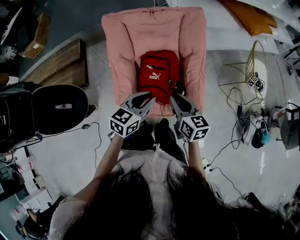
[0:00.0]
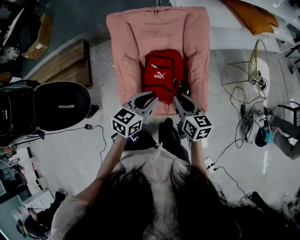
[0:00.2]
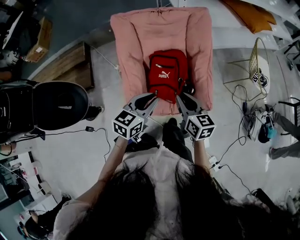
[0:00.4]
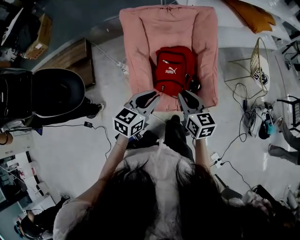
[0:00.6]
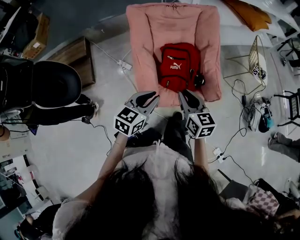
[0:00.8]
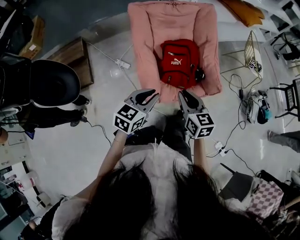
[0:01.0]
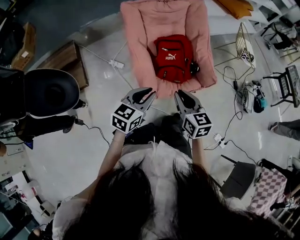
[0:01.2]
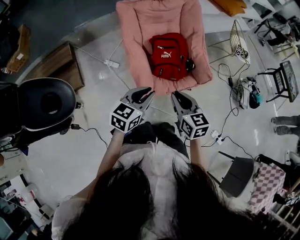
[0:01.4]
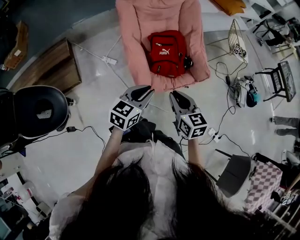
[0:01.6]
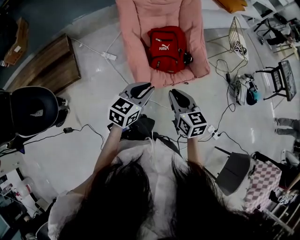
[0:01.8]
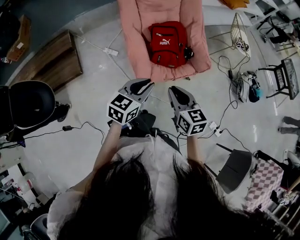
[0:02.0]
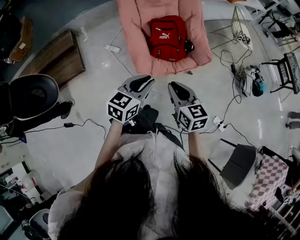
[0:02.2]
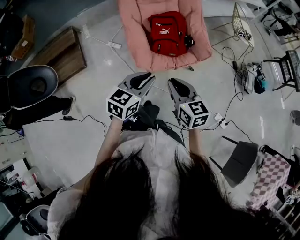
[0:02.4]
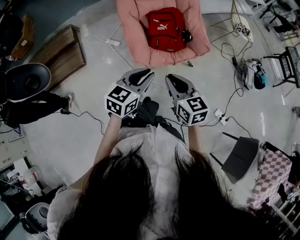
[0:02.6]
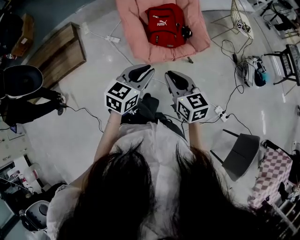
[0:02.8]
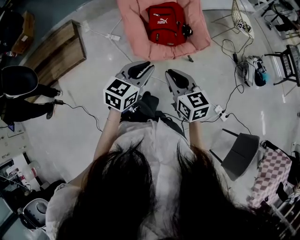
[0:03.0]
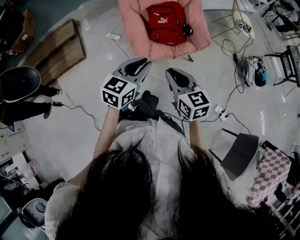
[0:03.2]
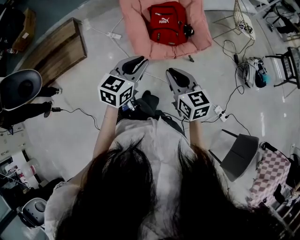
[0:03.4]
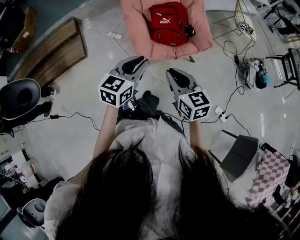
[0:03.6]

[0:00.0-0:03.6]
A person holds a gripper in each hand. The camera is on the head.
0:00.0 to 0:01.8: The grippers both shift backward and to the left by roughly 30 cm.
0:01.8 to 0:03.6: Both grippers move backward, roughly 10 cm.

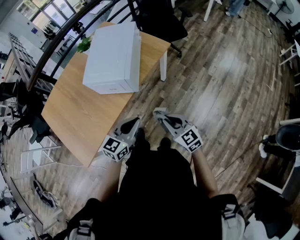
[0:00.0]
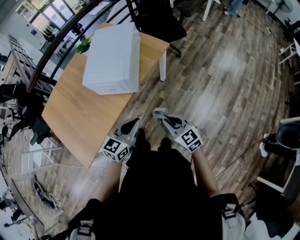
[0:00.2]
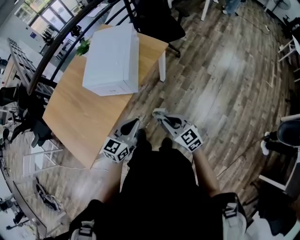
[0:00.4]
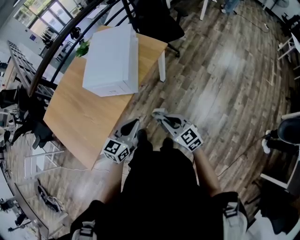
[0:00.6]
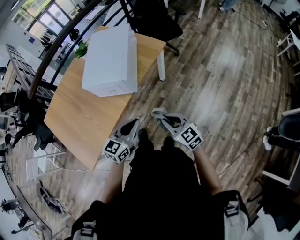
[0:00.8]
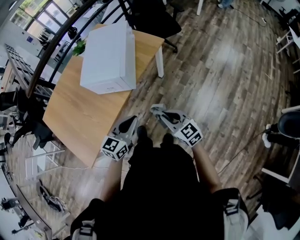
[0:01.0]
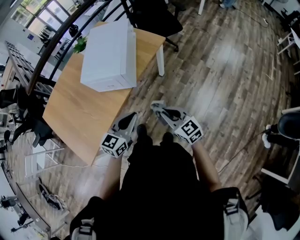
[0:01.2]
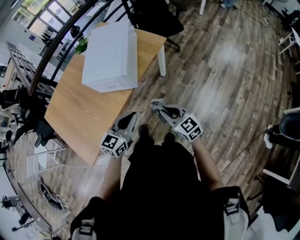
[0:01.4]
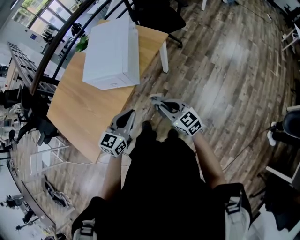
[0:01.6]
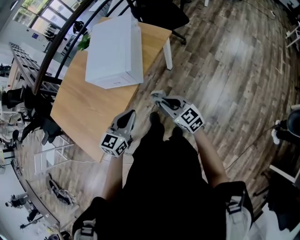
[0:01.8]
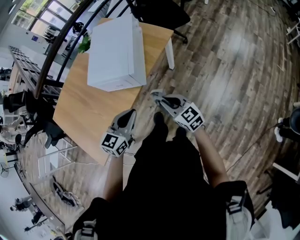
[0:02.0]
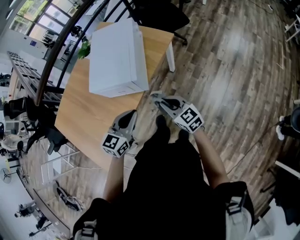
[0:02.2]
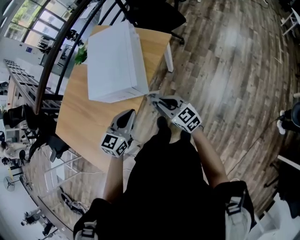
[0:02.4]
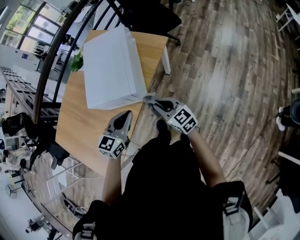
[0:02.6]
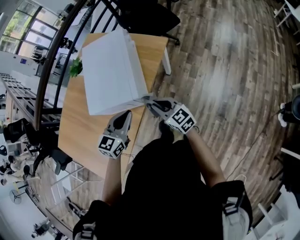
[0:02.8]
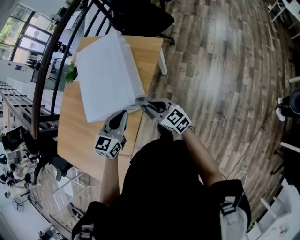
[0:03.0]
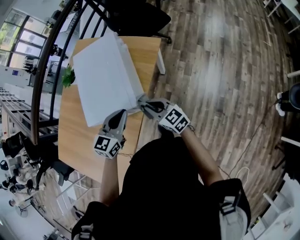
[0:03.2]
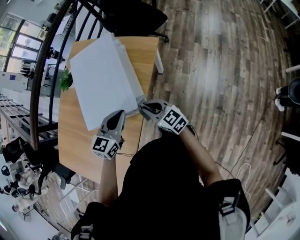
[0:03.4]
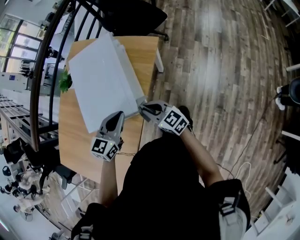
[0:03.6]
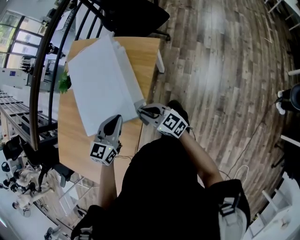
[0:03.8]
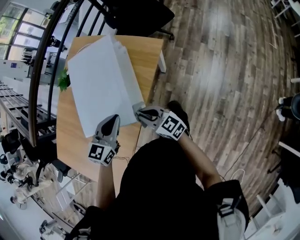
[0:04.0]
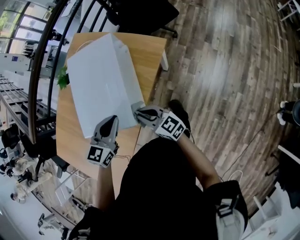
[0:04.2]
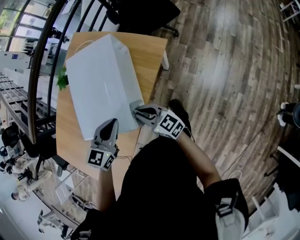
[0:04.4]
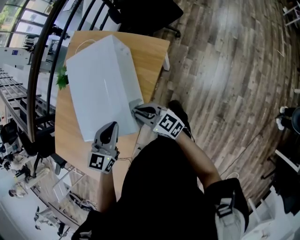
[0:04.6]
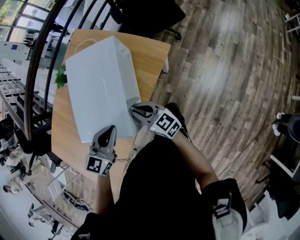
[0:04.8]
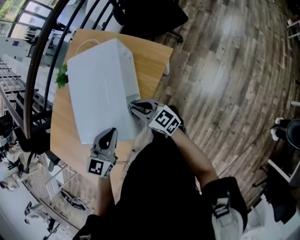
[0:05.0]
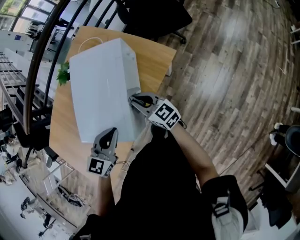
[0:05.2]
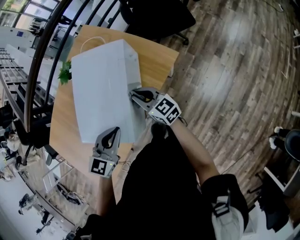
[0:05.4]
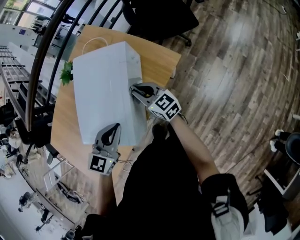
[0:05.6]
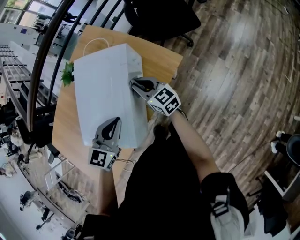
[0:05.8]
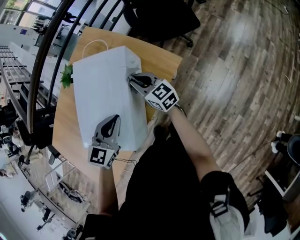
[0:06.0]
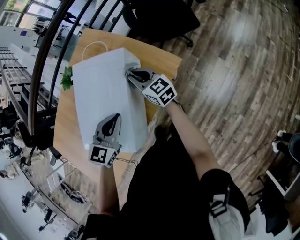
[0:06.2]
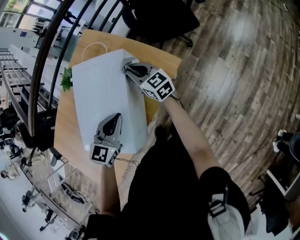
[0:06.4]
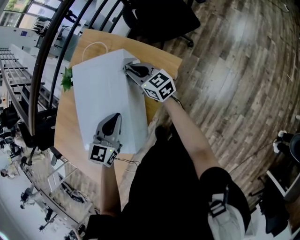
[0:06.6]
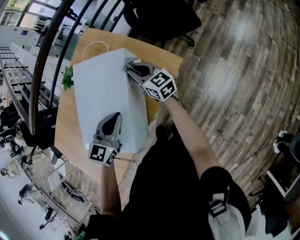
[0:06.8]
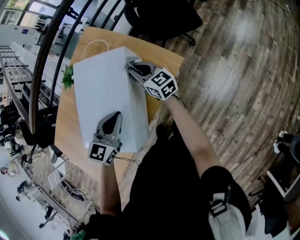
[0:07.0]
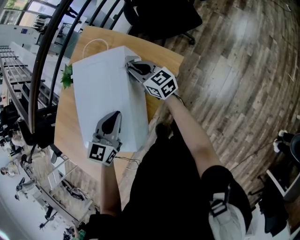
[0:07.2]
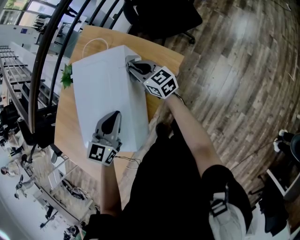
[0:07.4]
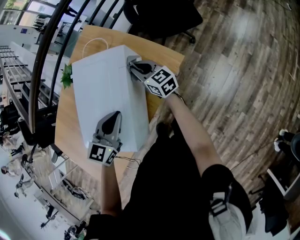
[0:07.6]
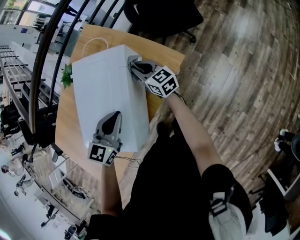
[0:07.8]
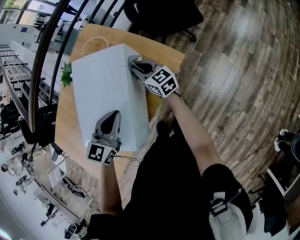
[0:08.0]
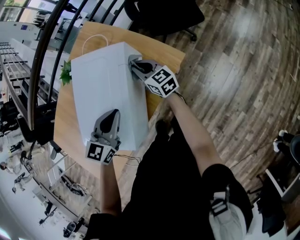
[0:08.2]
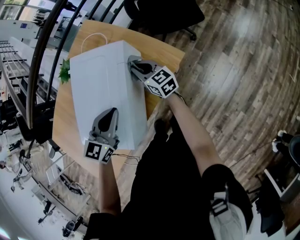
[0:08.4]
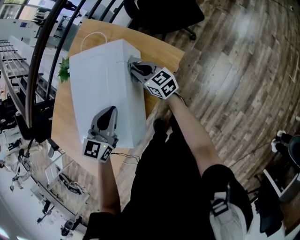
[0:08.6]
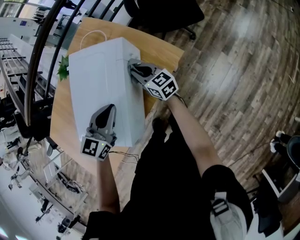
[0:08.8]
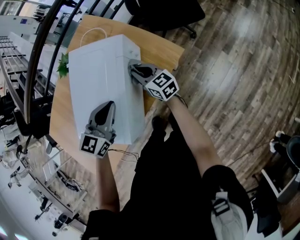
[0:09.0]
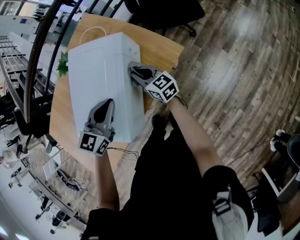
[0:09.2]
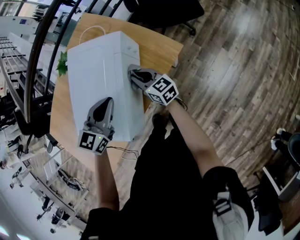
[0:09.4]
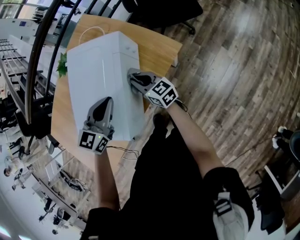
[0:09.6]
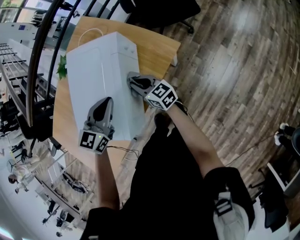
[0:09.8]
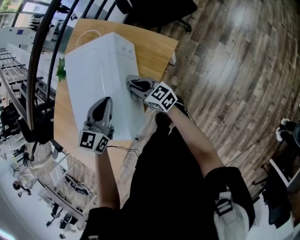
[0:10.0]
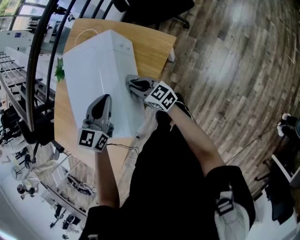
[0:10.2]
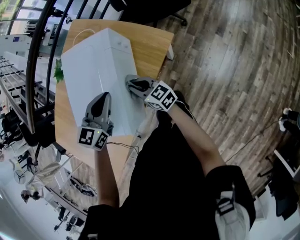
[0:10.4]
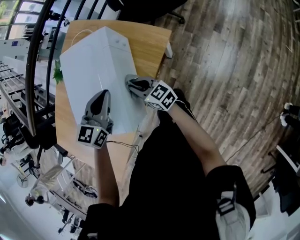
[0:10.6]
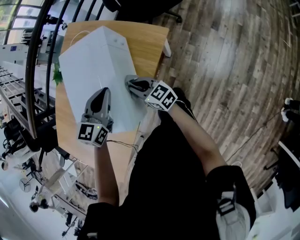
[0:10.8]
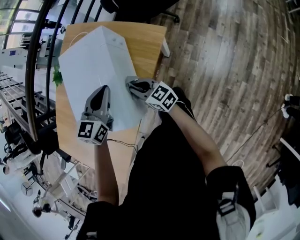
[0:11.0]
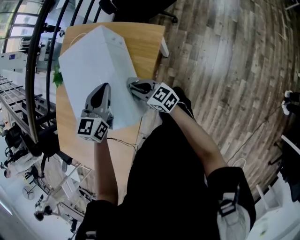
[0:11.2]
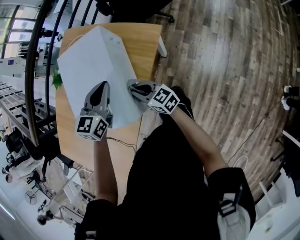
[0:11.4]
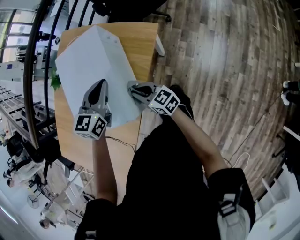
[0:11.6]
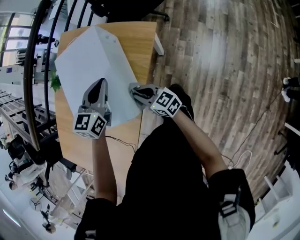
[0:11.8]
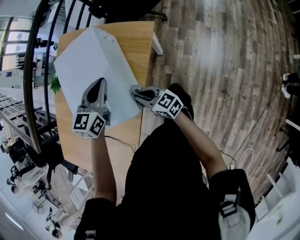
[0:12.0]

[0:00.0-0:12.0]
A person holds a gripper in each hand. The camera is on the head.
0:00.0 to 0:01.6: The grippers stay close to where they were, moving slightly.
0:01.6 to 0:03.0: The left gripper heads forward, covering roughly 20 cm. The right gripper heads forward and to the left, covering approximately 20 cm.
0:03.0 to 0:04.4: Both grippers move forward, about 10 cm.
0:04.4 to 0:06.0: The left gripper moves forward, about 10 cm, while the right gripper goes about 25 cm forward.
0:06.0 to 0:07.6: The right gripper moves forward, approximately 5 cm.
0:07.6 to 0:09.0: The right gripper is displaced backward by about 5 cm.
0:09.0 to 0:10.4: The right gripper goes about 10 cm backward.
0:10.4 to 0:12.0: The right gripper heads backward, covering roughly 10 cm.

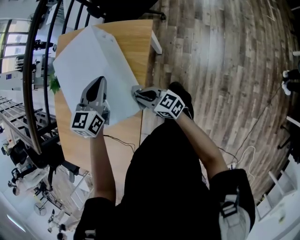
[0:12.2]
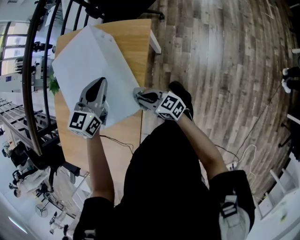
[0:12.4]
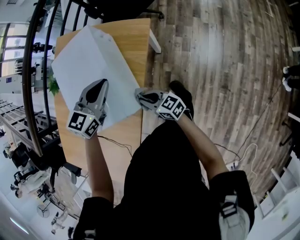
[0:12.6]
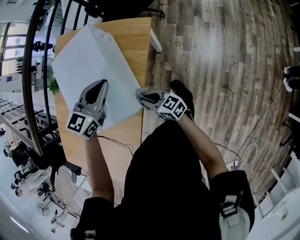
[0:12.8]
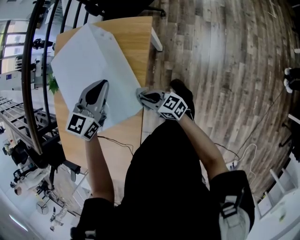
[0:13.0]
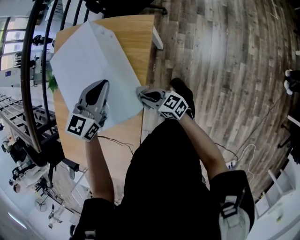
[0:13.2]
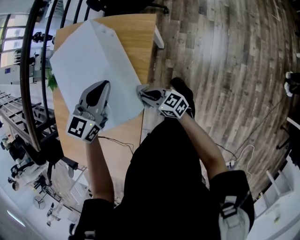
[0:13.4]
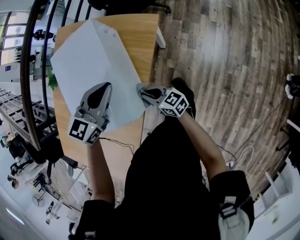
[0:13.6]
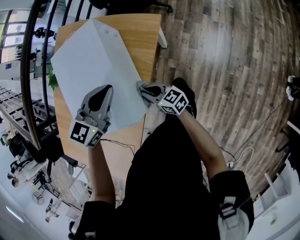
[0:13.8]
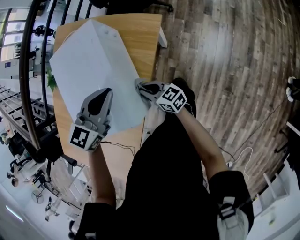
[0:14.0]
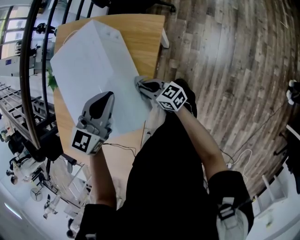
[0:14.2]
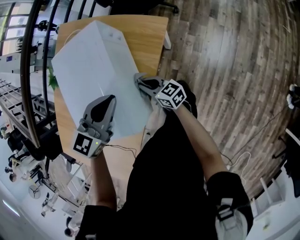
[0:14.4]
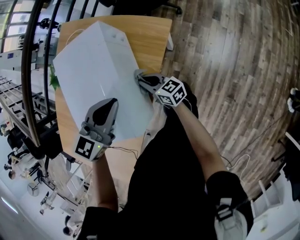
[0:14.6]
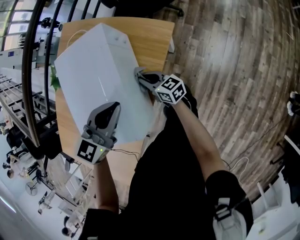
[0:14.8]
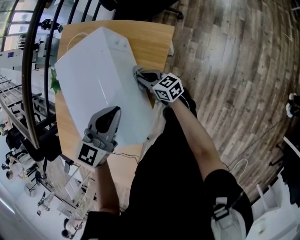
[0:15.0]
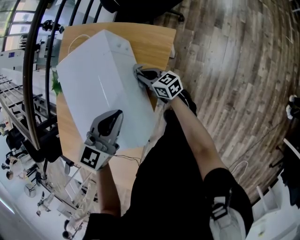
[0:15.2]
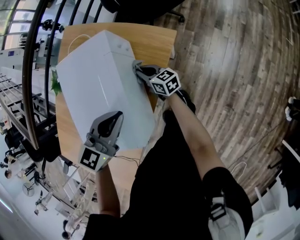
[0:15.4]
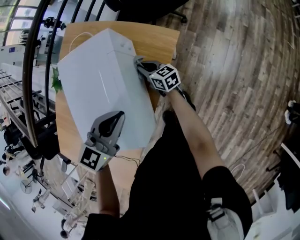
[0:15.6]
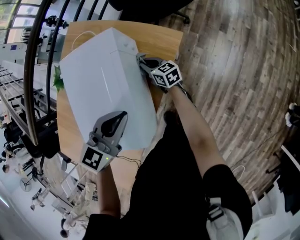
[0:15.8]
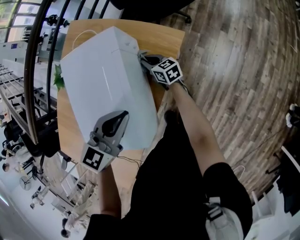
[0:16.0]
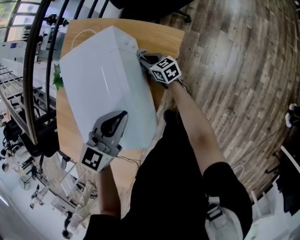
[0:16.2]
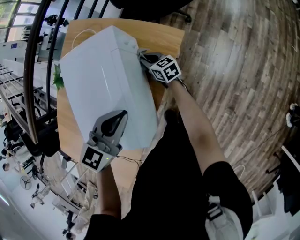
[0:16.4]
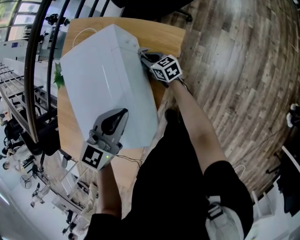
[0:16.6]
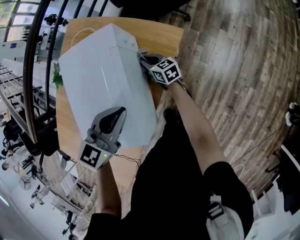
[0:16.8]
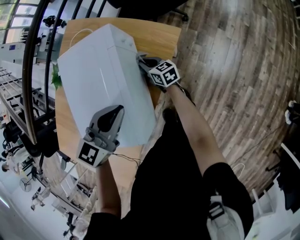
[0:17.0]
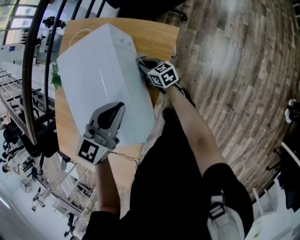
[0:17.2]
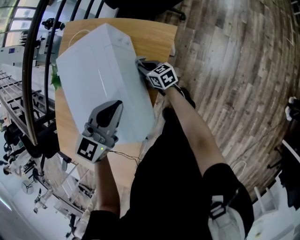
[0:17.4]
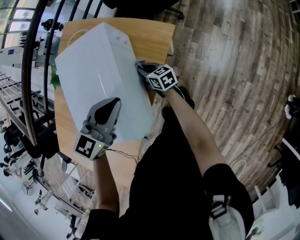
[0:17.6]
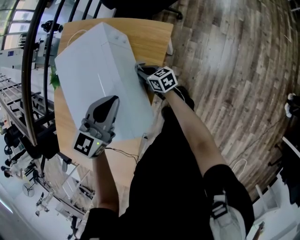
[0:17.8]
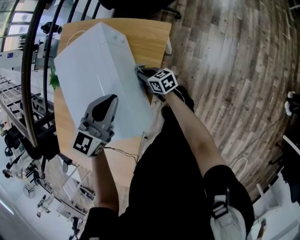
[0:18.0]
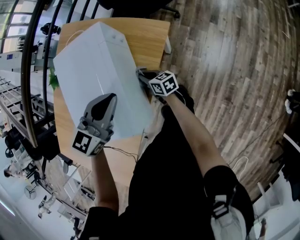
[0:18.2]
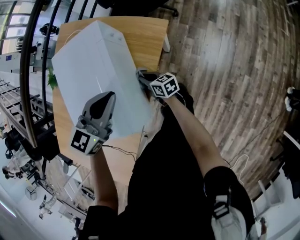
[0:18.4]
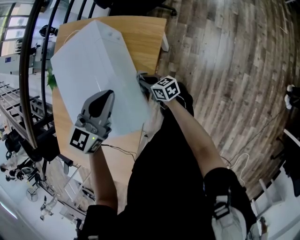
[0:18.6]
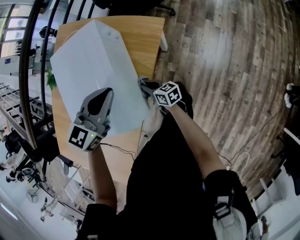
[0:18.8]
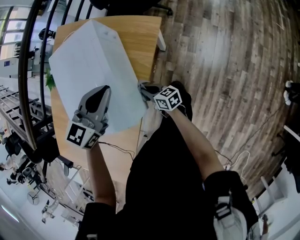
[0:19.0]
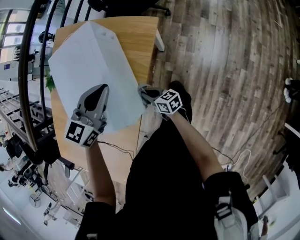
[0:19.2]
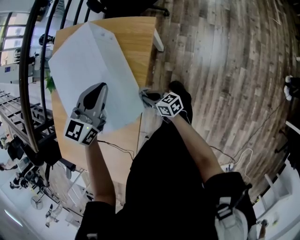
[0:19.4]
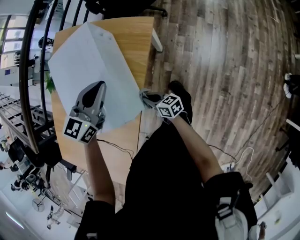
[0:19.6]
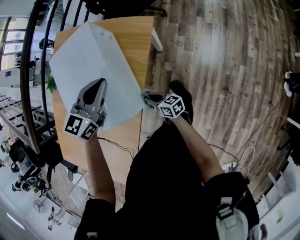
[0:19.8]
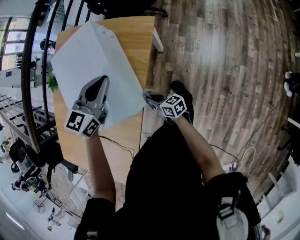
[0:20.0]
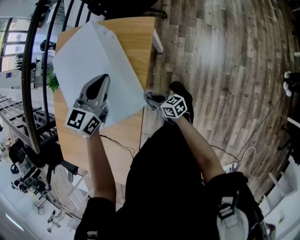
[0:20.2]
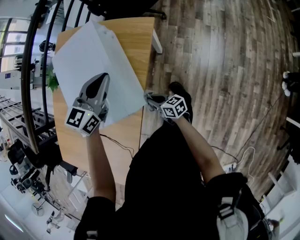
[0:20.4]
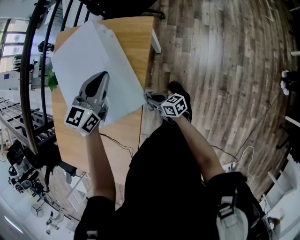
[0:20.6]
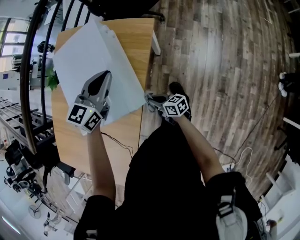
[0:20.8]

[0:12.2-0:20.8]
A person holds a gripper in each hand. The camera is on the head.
0:12.2 to 0:13.6: The right gripper changes place by approximately 5 cm.
0:13.6 to 0:15.0: The right gripper moves forward, roughly 15 cm.
0:15.0 to 0:16.6: The right gripper travels forward by approximately 10 cm.
0:16.6 to 0:18.0: The right gripper is displaced backward by some 10 cm.
0:18.0 to 0:19.4: The right gripper moves backward, about 15 cm.
0:19.4 to 0:20.8: The right gripper moves backward, about 5 cm.
